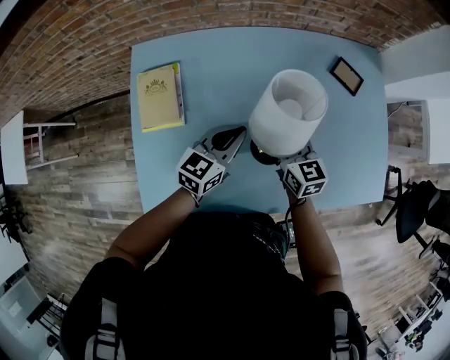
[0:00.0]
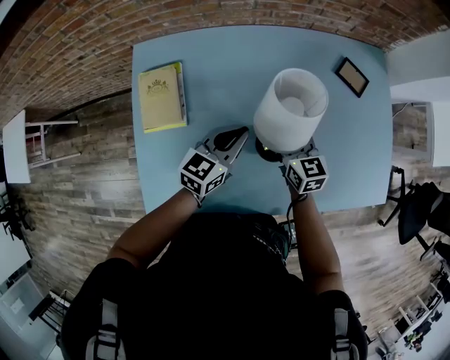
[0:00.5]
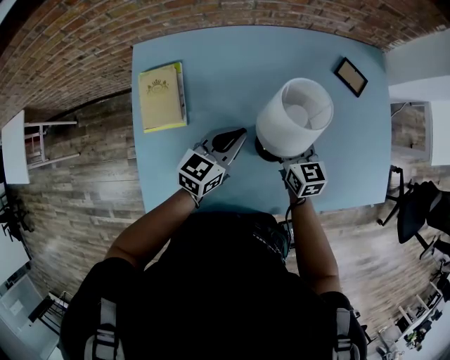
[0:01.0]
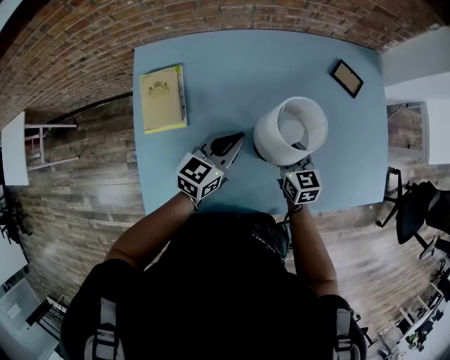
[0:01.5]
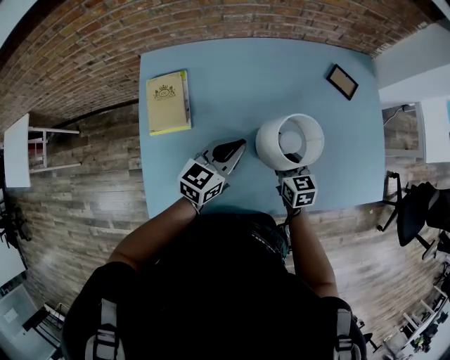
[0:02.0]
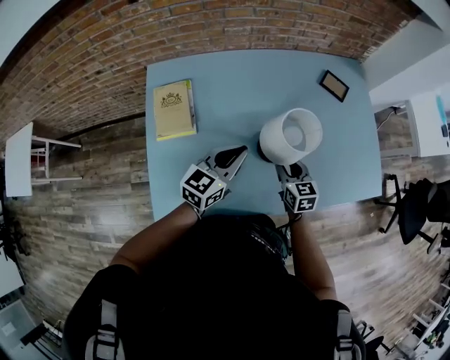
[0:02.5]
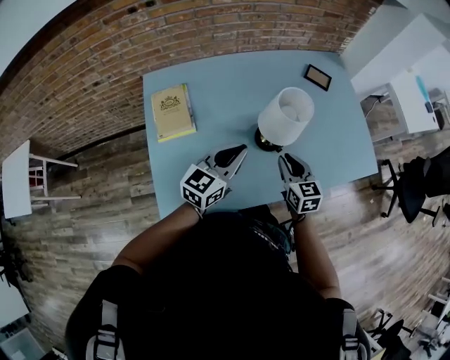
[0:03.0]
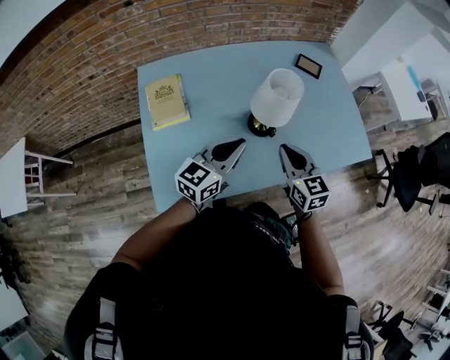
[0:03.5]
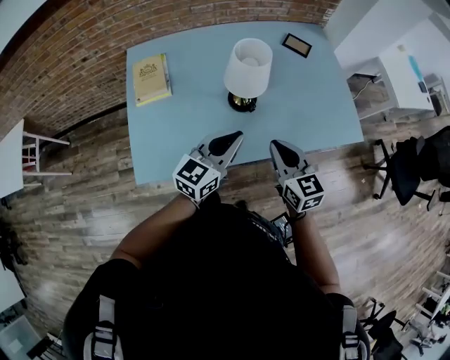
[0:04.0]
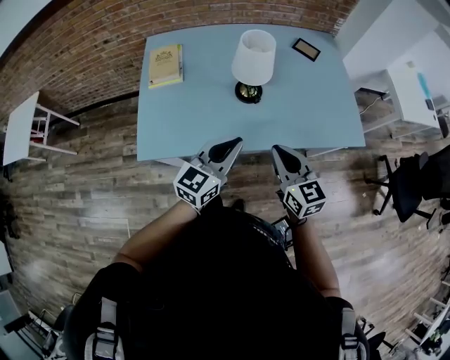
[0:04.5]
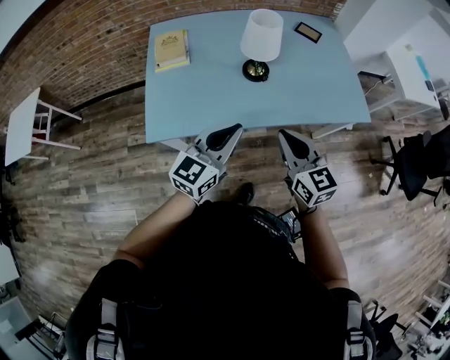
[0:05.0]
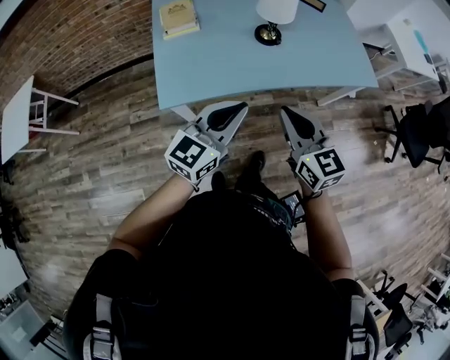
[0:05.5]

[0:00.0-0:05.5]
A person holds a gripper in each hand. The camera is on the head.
0:00.0 to 0:02.0: The right gripper heads backward and downward, covering approximately 10 cm; the left gripper changes place by some 5 cm.
0:02.0 to 0:03.5: The left gripper moves backward and upward, approximately 20 cm. Meanwhile the right gripper heads upward and backward, covering roughly 25 cm, and closes its fingers.
0:03.5 to 0:05.5: The two grippers go roughly 30 cm backward.

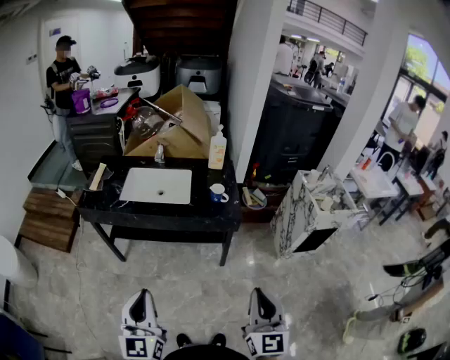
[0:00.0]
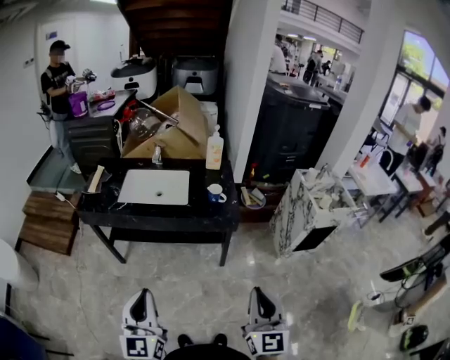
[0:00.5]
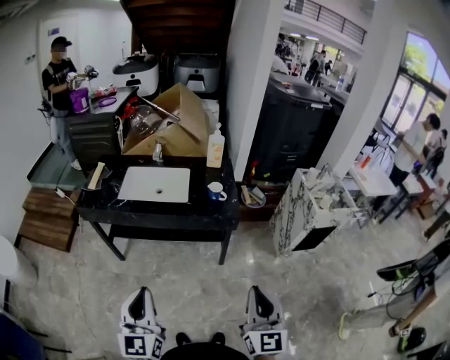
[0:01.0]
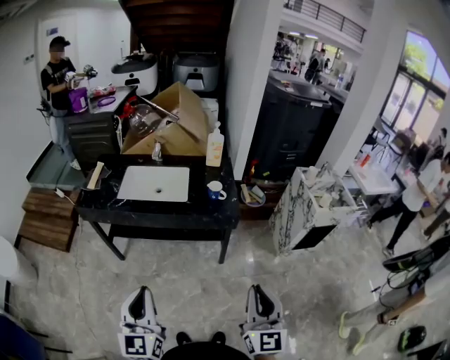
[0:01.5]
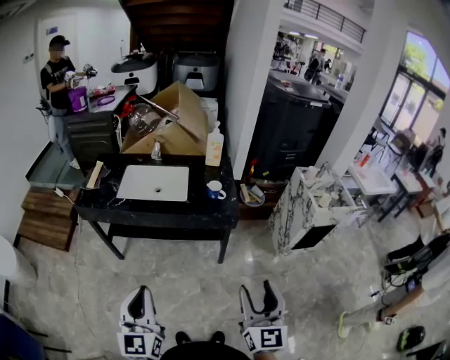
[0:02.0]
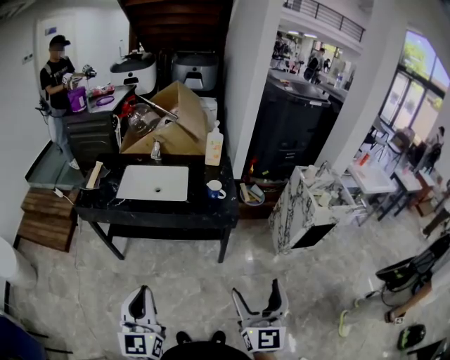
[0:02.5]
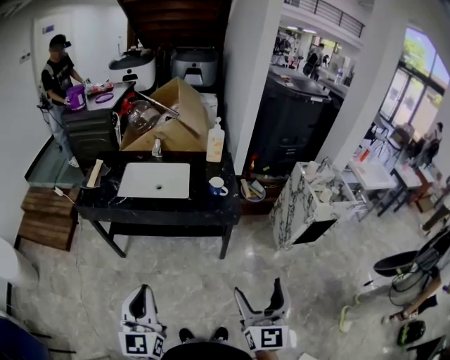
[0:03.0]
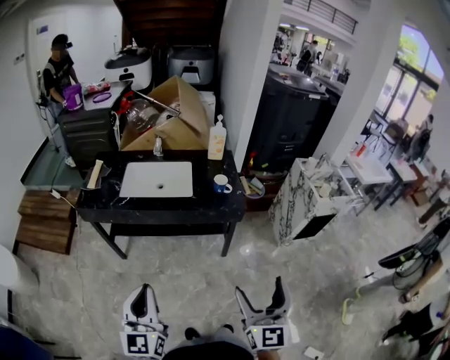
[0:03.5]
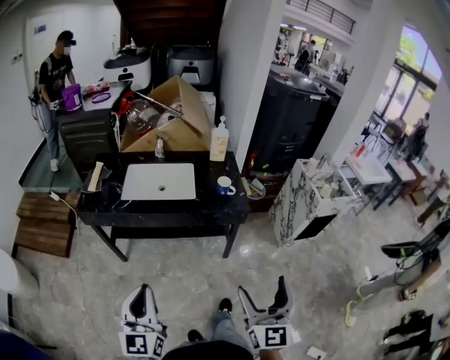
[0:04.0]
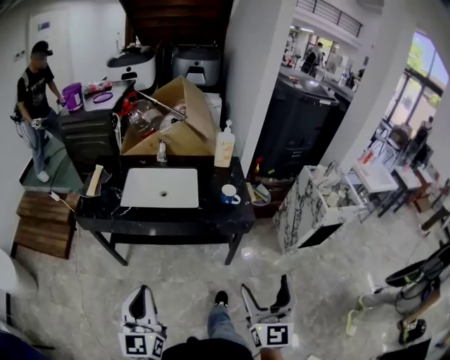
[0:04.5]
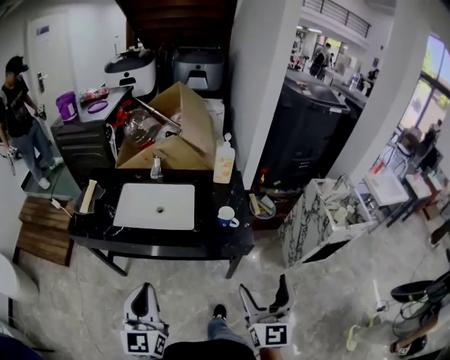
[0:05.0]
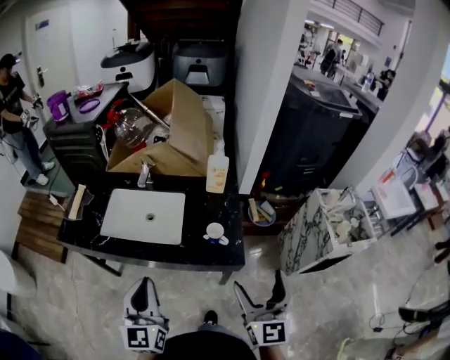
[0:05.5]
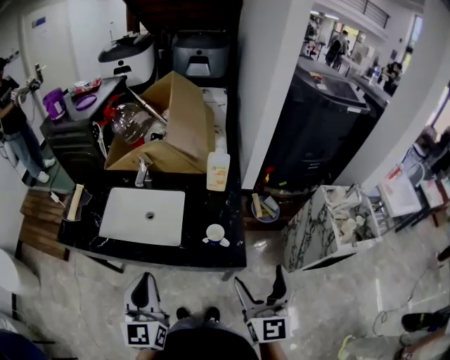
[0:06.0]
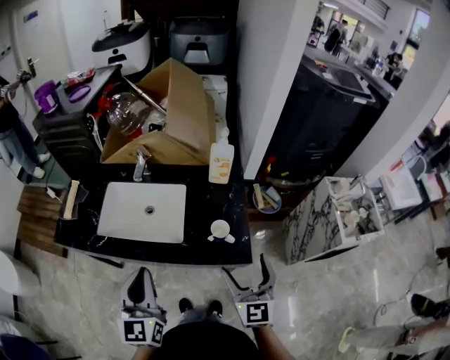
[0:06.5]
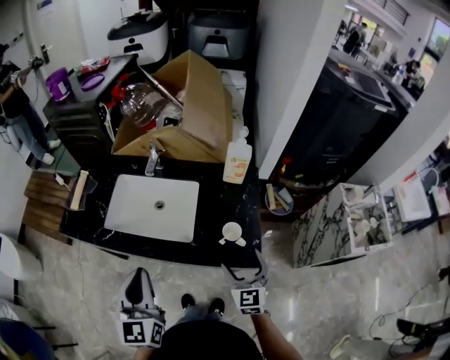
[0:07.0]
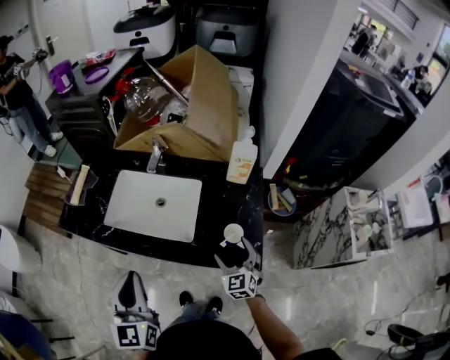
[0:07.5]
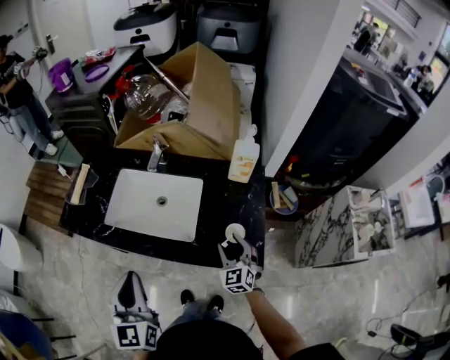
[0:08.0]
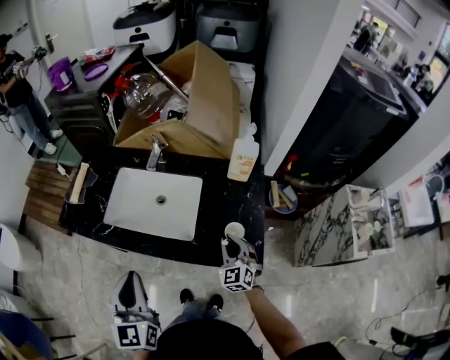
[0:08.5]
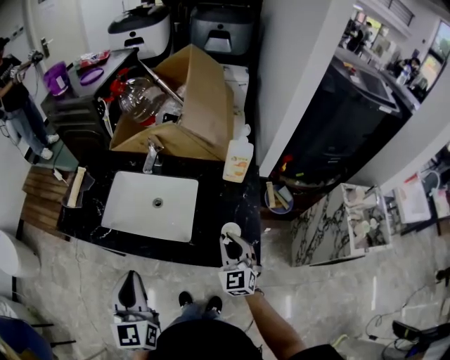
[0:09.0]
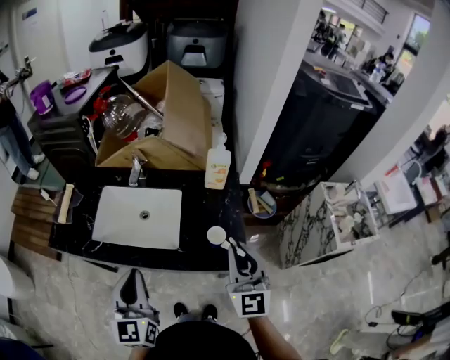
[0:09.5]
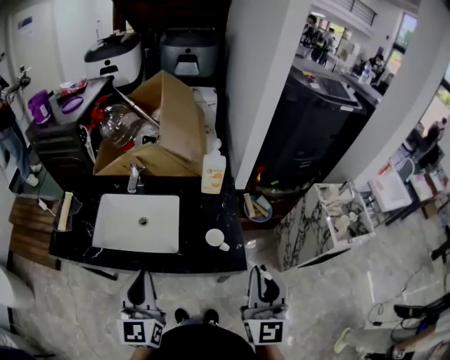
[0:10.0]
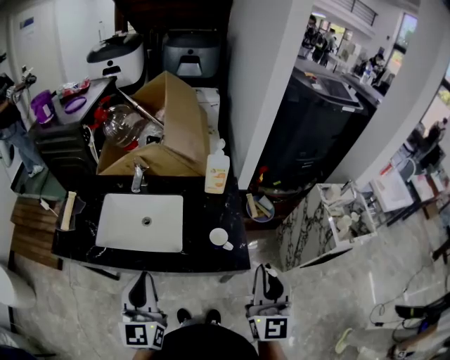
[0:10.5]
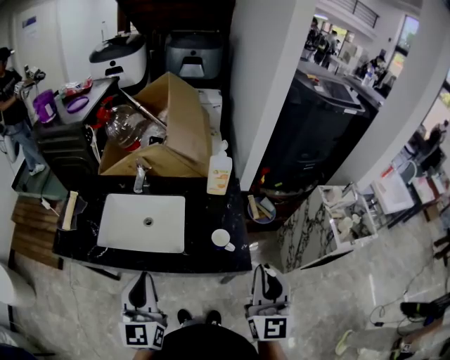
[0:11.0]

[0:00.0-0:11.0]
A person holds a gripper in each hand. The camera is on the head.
0:00.0 to 0:02.0: The right gripper opens.
0:02.0 to 0:03.5: Both grippers travel together to the left, approximately 5 cm. The right gripper opens its fingers.
0:03.5 to 0:05.5: The grippers both shift forward by approximately 30 cm.
0:05.5 to 0:07.5: The left gripper is displaced forward and to the left by approximately 10 cm. Meanwhile the right gripper shifts roughly 30 cm downward and forward, and changes its angle by some 30 degrees.
0:07.5 to 0:09.0: The right gripper heads upward, covering approximately 5 cm, and closes up.
0:09.0 to 0:11.0: The right gripper is displaced upward, backward and to the right by some 25 cm, and swivels approximately 40 degrees.

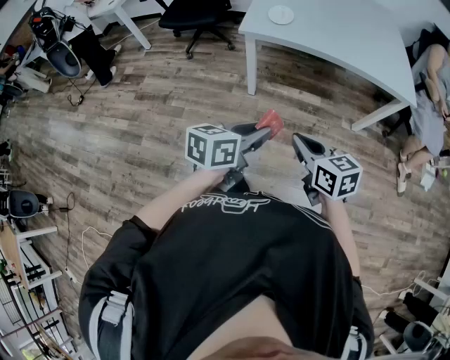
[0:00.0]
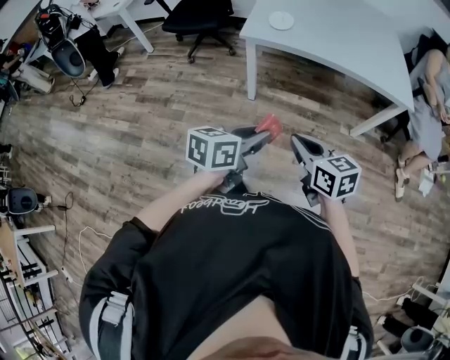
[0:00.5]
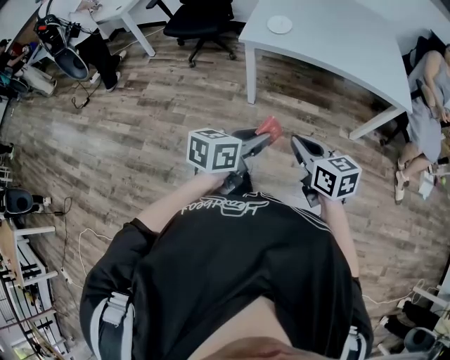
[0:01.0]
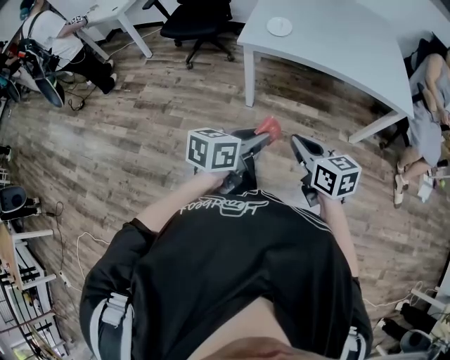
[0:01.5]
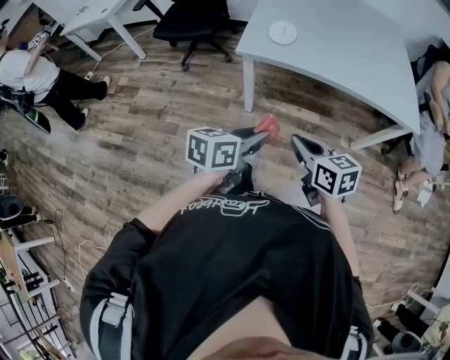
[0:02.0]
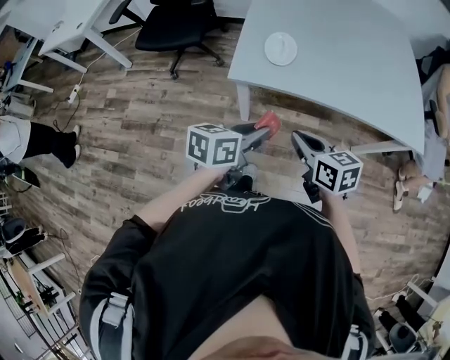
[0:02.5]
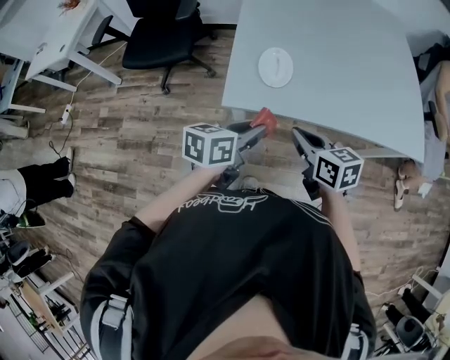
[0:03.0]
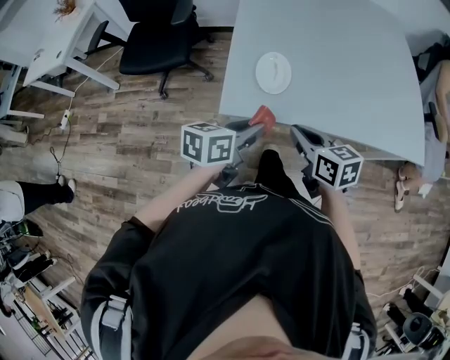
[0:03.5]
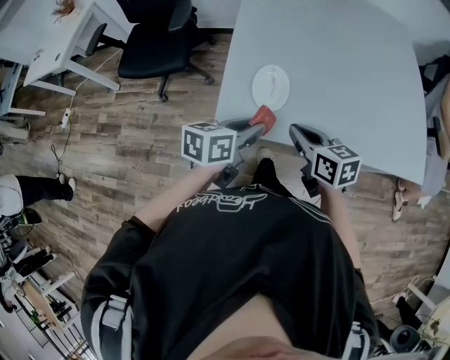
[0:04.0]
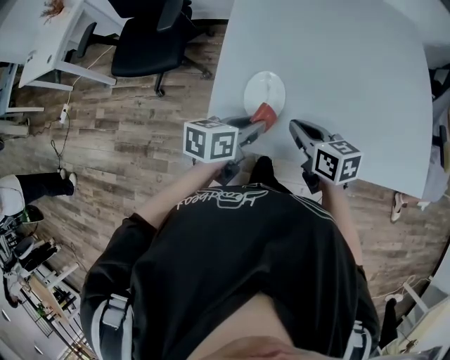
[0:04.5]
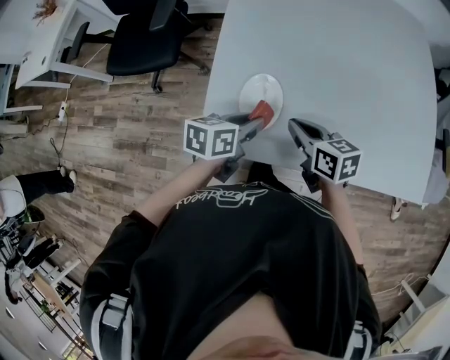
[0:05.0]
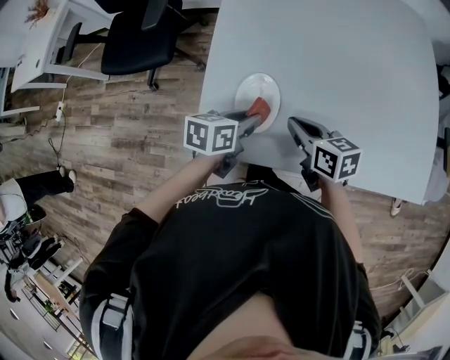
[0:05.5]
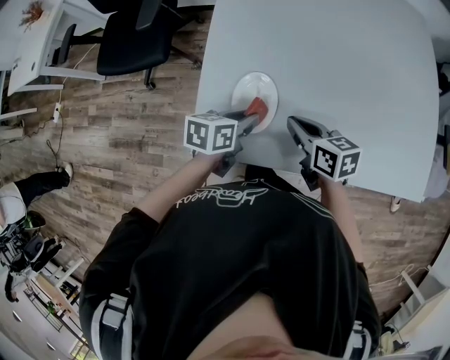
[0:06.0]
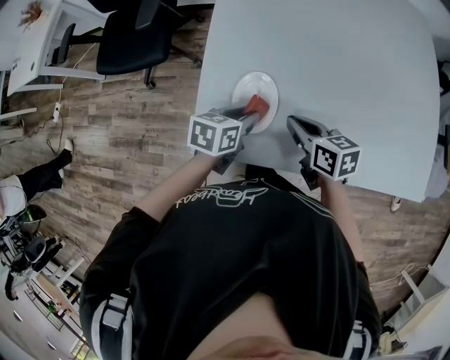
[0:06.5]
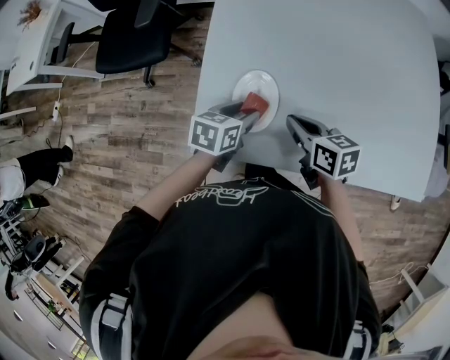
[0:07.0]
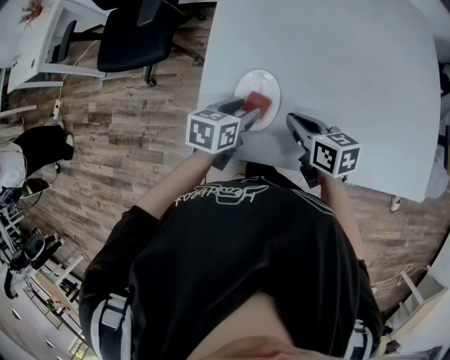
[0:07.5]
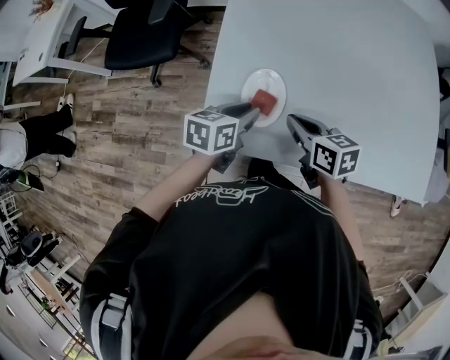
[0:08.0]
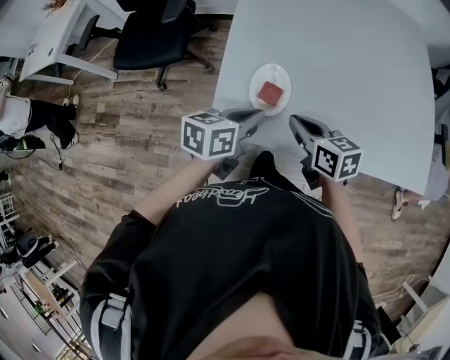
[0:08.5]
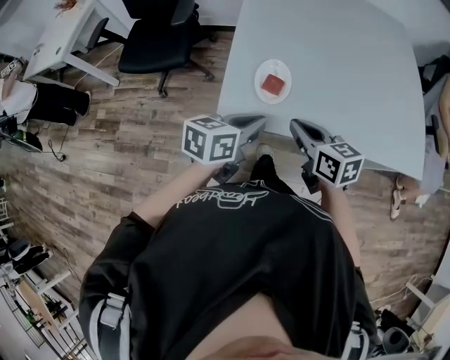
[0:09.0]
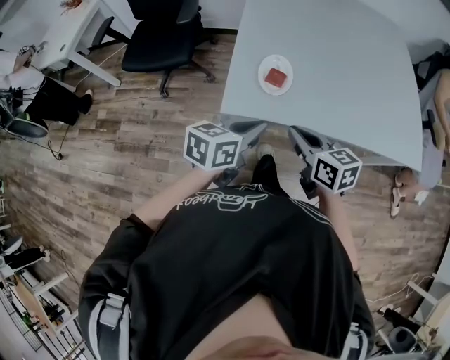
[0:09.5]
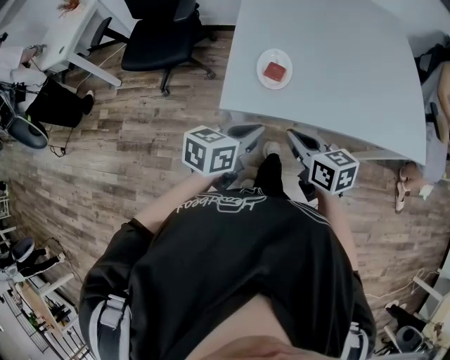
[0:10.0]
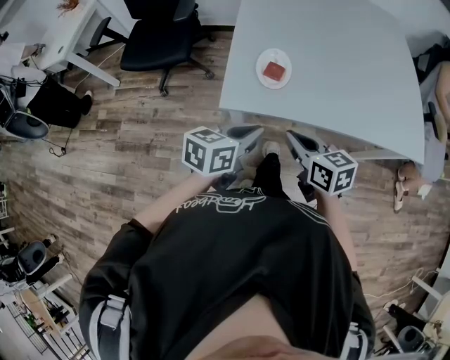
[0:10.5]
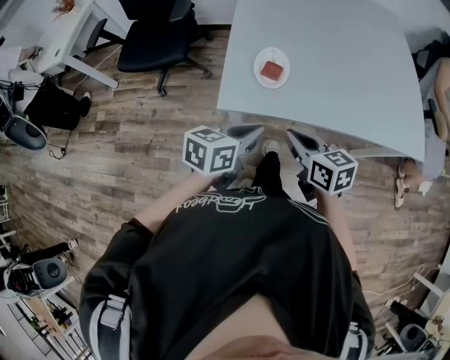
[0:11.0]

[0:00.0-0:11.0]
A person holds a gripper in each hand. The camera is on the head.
0:00.0 to 0:02.0: Both grippers move forward, approximately 15 cm.
0:02.0 to 0:03.5: The two grippers go roughly 30 cm forward.
0:03.5 to 0:05.5: The left gripper is displaced forward and downward by approximately 20 cm. The right gripper moves forward, some 20 cm.
0:05.5 to 0:07.5: The left gripper opens its fingers.
0:07.5 to 0:09.0: Both grippers move backward and upward, about 20 cm. The left gripper closes.
0:09.0 to 0:11.0: The grippers both shift backward by some 10 cm.
